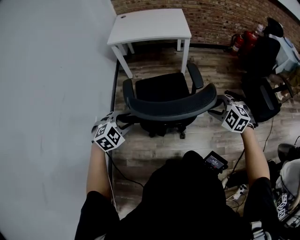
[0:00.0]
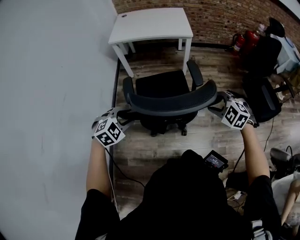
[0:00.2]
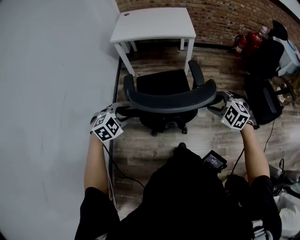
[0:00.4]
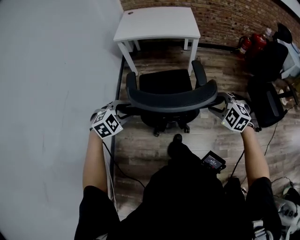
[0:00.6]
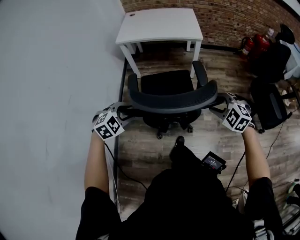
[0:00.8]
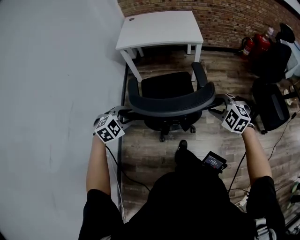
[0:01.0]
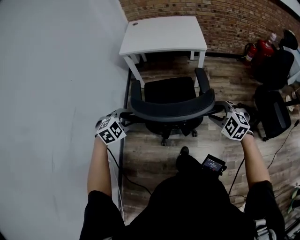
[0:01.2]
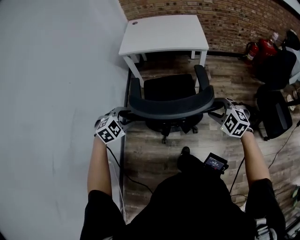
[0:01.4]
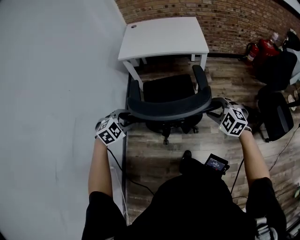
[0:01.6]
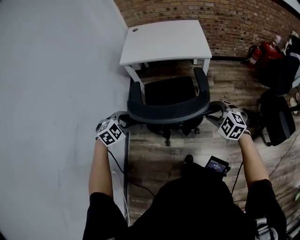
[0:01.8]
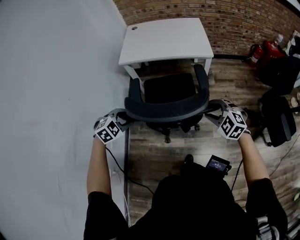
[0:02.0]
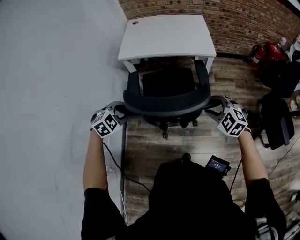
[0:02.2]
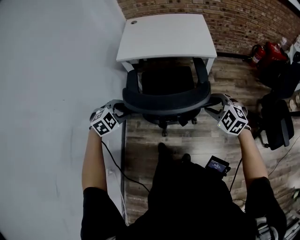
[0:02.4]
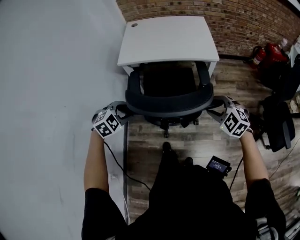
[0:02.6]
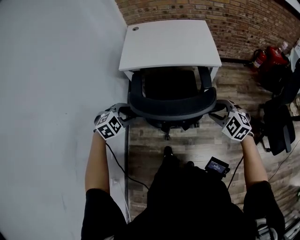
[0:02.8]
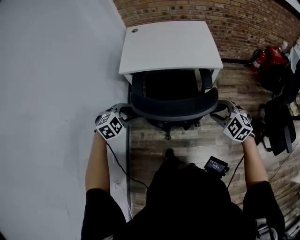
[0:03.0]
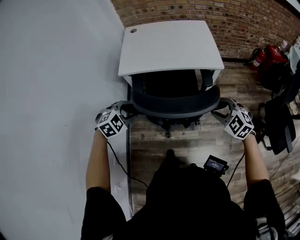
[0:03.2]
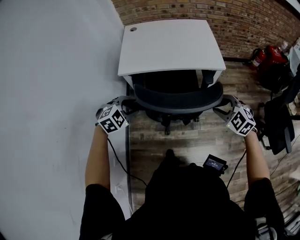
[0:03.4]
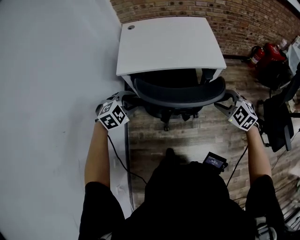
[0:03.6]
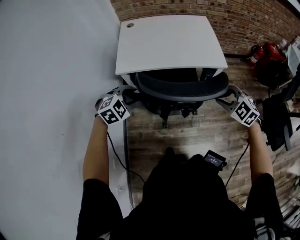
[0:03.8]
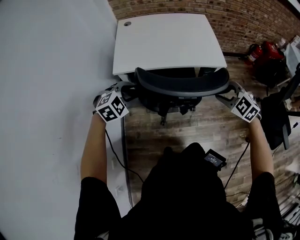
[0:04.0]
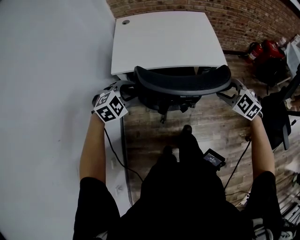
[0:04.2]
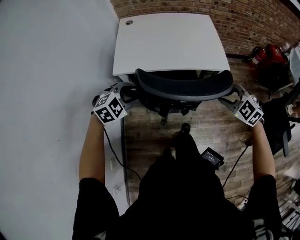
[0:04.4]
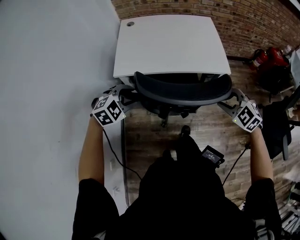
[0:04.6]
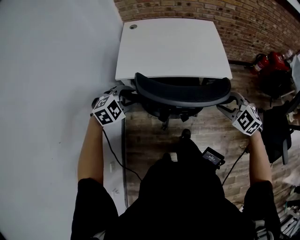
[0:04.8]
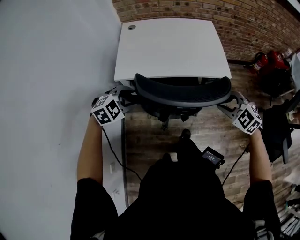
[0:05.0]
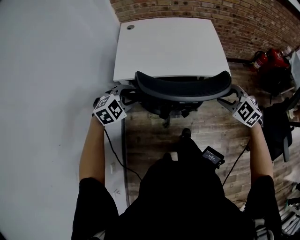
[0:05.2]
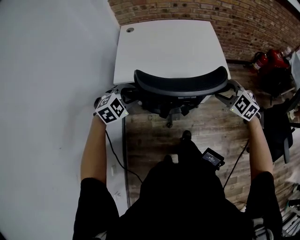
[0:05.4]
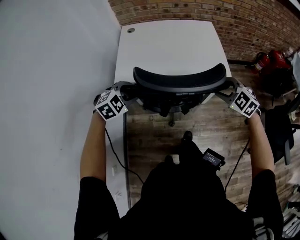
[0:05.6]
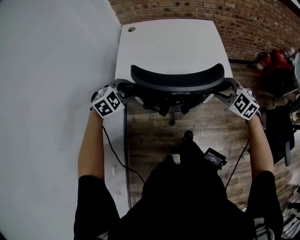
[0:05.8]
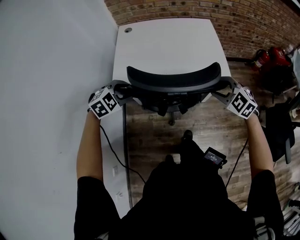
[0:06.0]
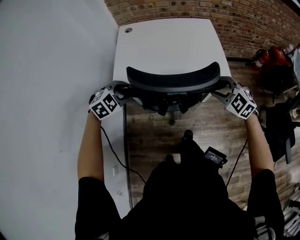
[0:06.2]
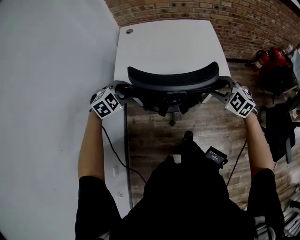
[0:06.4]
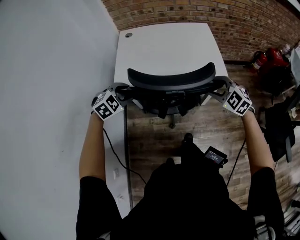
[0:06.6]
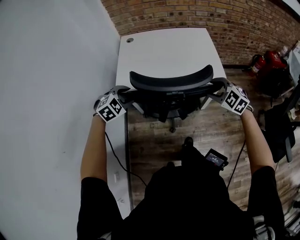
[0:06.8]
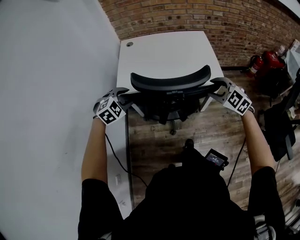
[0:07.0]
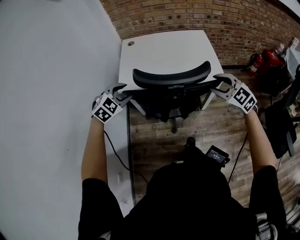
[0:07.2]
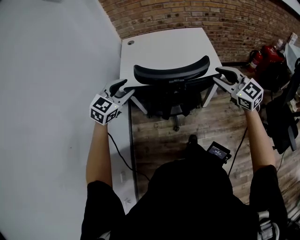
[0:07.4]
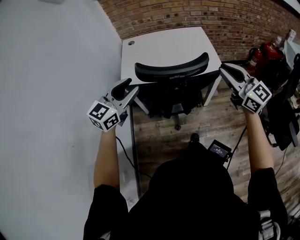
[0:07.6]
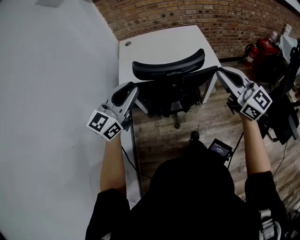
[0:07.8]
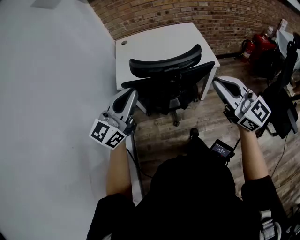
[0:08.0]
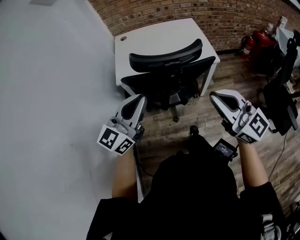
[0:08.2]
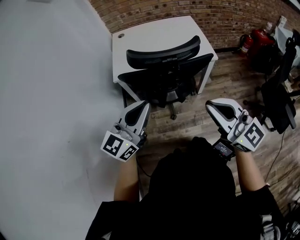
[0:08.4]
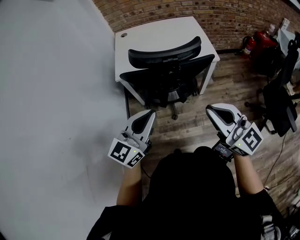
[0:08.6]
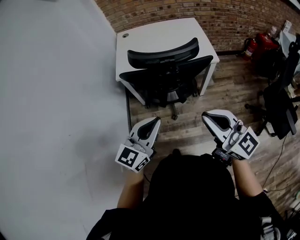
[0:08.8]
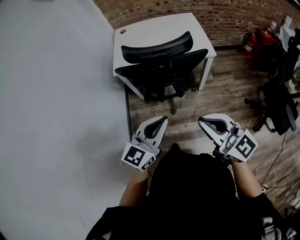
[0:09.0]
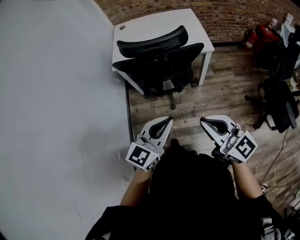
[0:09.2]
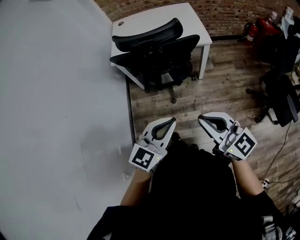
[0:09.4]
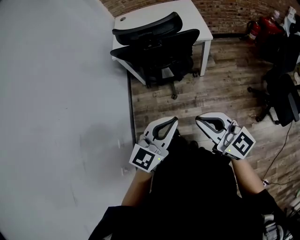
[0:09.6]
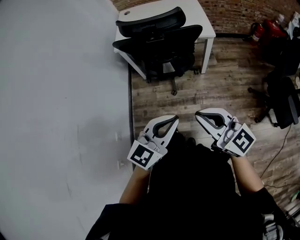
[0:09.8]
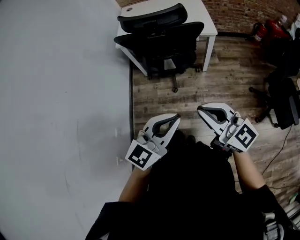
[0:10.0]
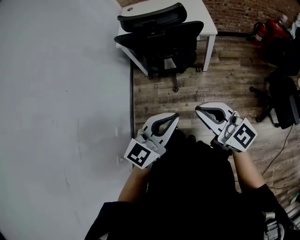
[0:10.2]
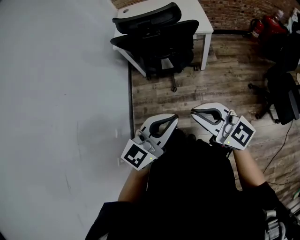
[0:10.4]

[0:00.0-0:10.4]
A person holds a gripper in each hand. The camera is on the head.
0.0 to 1.4 s: Both grippers move forward and to the left, some 20 cm.
1.4 to 3.0 s: The two grippers go approximately 30 cm forward.
3.0 to 4.4 s: Both grippers travel together forward, about 10 cm.
4.4 to 6.0 s: The two grippers go roughly 10 cm forward.
6.0 to 7.4 s: The left gripper heads upward, covering about 15 cm, and angles its fingers upward, by roughly 30 degrees, while the right gripper moves upward and backward, some 15 cm, and swivels some 40 degrees.
7.4 to 9.0 s: The left gripper heads backward and to the right, covering approximately 30 cm, turns by approximately 30 degrees, and closes up; the right gripper is displaced backward by approximately 30 cm, turns by about 20 degrees, and closes.
9.0 to 10.4 s: The right gripper shifts approximately 15 cm backward, while the left gripper moves backward and to the right, approximately 20 cm.

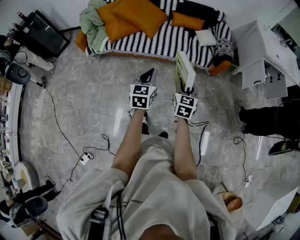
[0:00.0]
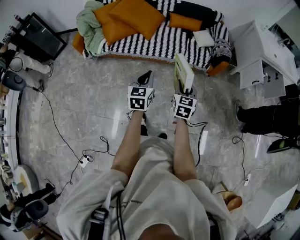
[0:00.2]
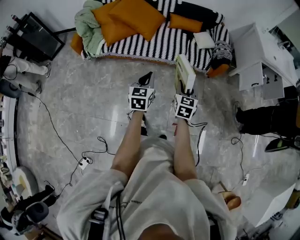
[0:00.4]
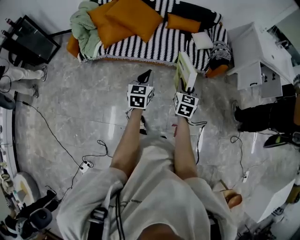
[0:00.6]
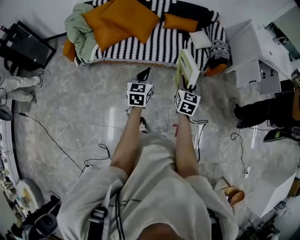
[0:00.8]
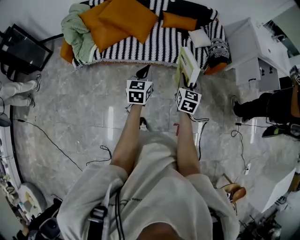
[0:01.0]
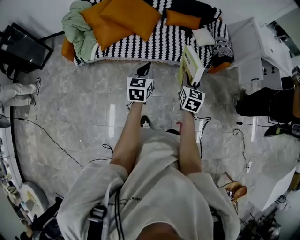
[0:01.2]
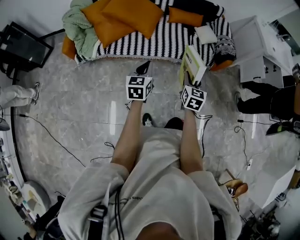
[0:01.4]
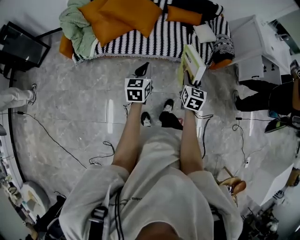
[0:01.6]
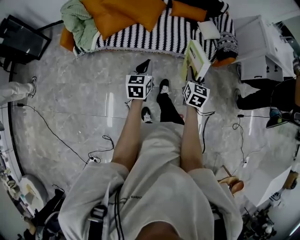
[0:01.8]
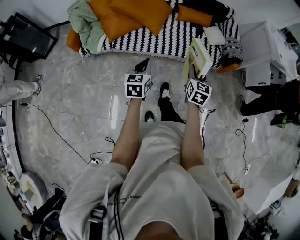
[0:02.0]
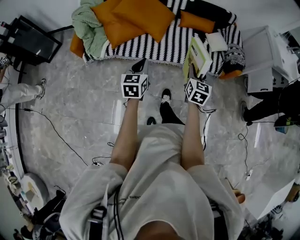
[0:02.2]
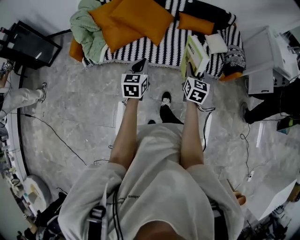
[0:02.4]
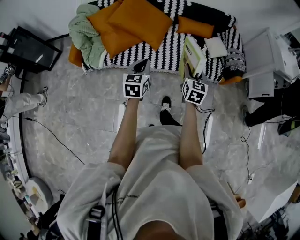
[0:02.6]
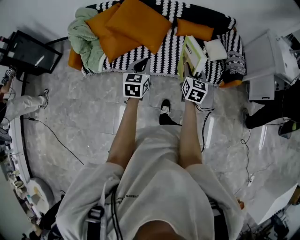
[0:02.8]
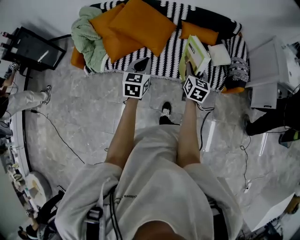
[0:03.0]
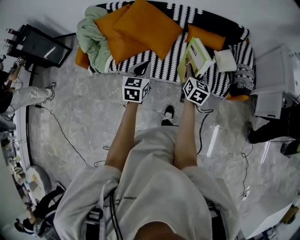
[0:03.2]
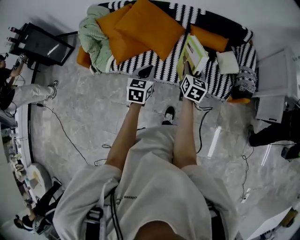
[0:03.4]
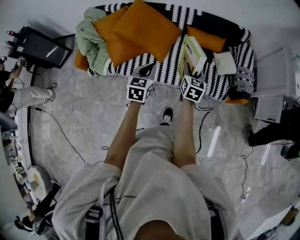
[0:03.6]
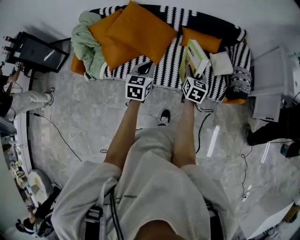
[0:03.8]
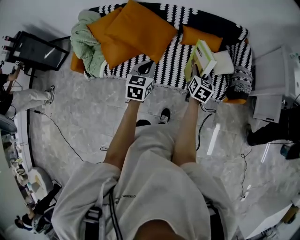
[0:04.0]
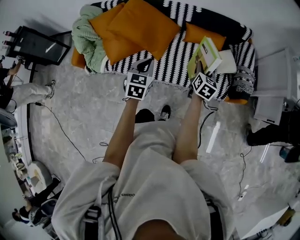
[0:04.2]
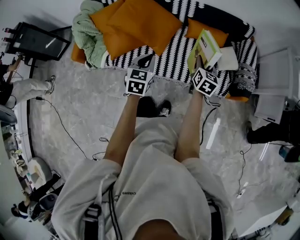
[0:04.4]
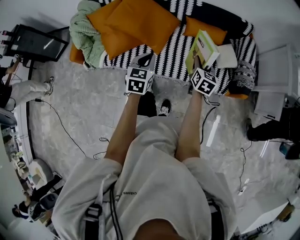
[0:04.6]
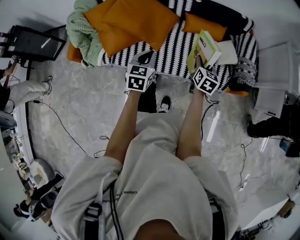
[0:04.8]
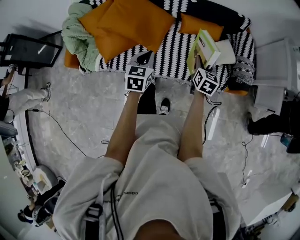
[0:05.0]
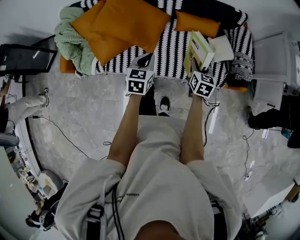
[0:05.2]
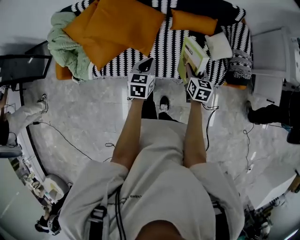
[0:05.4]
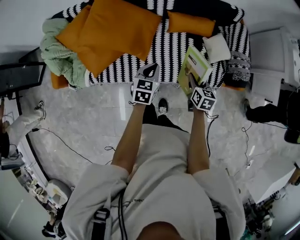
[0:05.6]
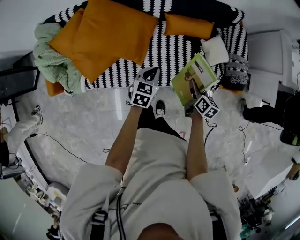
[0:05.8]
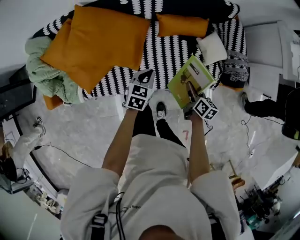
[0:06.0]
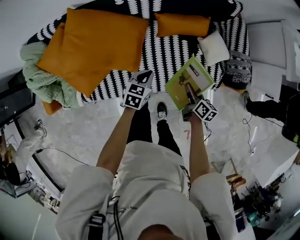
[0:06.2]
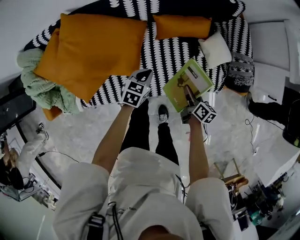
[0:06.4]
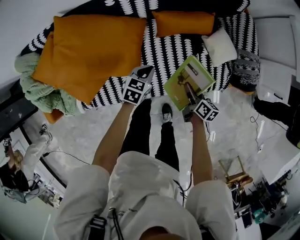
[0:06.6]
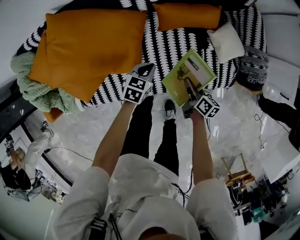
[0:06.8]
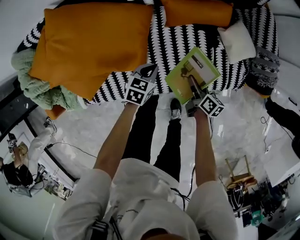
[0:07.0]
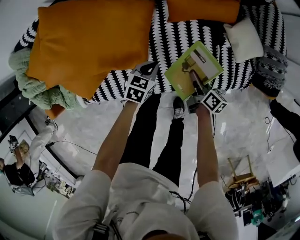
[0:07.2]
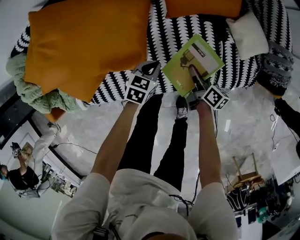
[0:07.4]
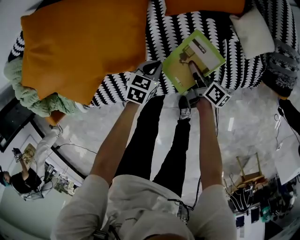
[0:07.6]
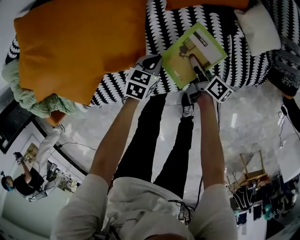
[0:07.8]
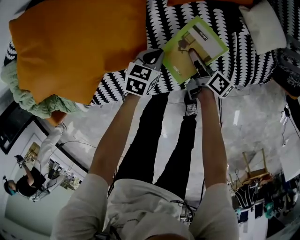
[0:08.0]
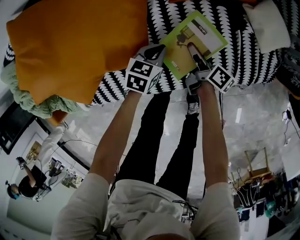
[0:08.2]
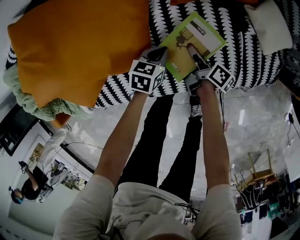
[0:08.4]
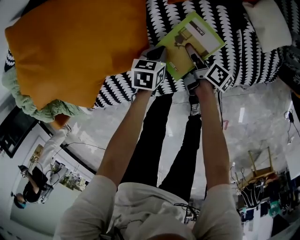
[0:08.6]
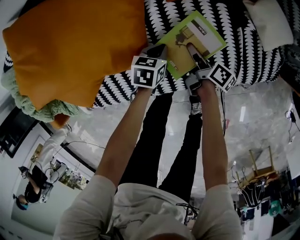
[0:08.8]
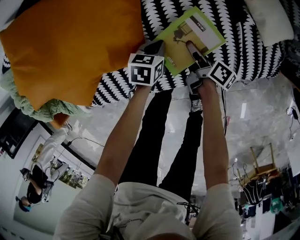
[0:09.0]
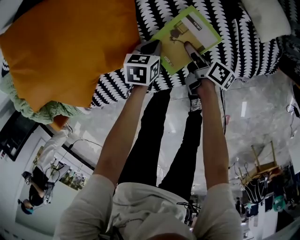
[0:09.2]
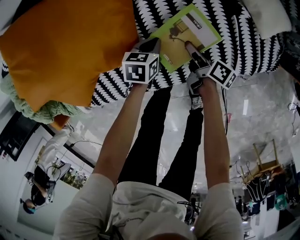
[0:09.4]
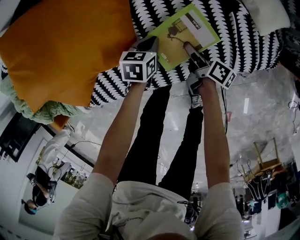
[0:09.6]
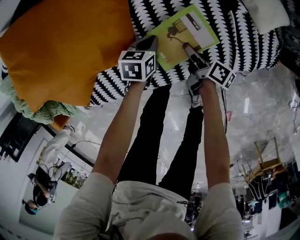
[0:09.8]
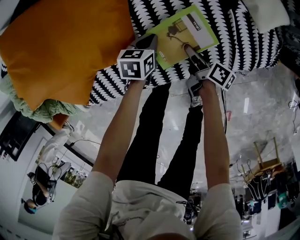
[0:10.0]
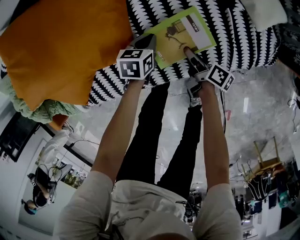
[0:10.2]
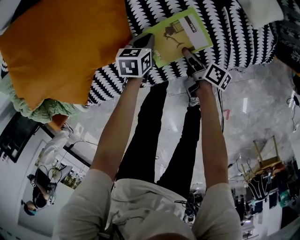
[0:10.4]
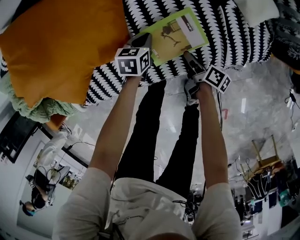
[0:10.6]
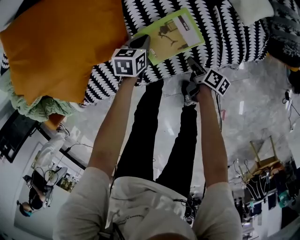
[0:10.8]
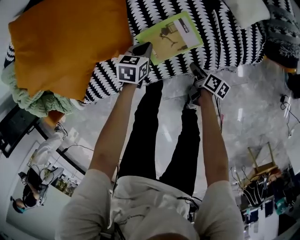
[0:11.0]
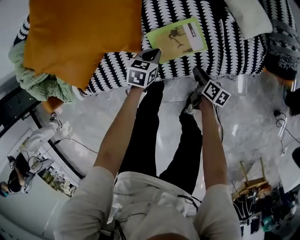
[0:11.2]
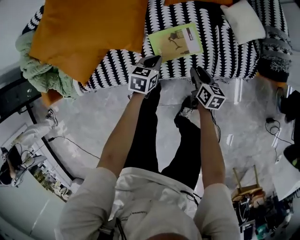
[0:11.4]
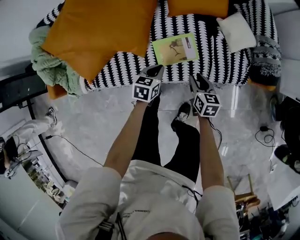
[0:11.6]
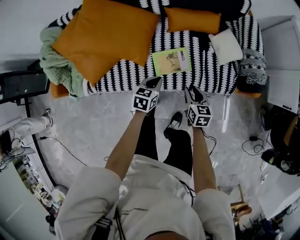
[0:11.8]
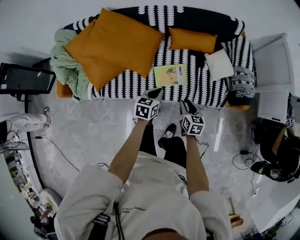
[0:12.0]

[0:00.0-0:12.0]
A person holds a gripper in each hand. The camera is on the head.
0.0 to 1.6 s: The left gripper moves to the left and forward, about 20 cm. The right gripper travels forward and to the left by roughly 15 cm.
1.6 to 3.0 s: The grippers both shift forward by some 20 cm.
3.0 to 4.4 s: The right gripper is displaced forward and to the right by some 15 cm. The left gripper is displaced forward by about 10 cm.
4.4 to 6.0 s: The right gripper shifts about 15 cm downward, and rotates approximately 30 degrees. The left gripper goes approximately 25 cm forward and downward, and changes its angle by some 30 degrees.
6.0 to 7.6 s: Both grippers travel together downward, some 30 cm. The right gripper turns by roughly 30 degrees.
7.6 to 9.0 s: Both grippers travel together downward, approximately 5 cm.
9.0 to 10.4 s: The right gripper shifts about 5 cm backward.
10.4 to 12.0 s: The two grippers go some 35 cm upward and backward. The right gripper rolls counterclockwise, seen from behind, by about 70 degrees; the left gripper rotates about 20 degrees.

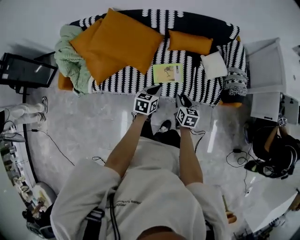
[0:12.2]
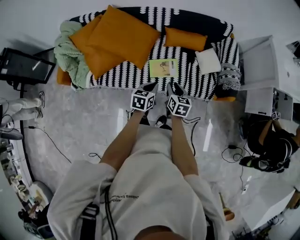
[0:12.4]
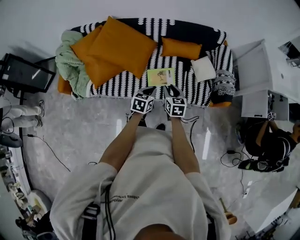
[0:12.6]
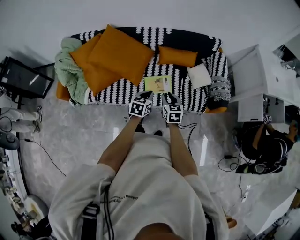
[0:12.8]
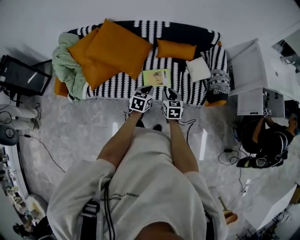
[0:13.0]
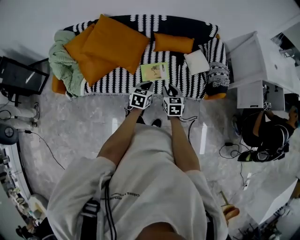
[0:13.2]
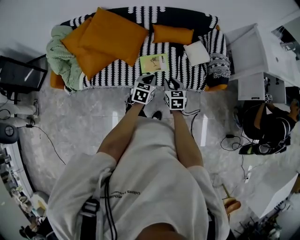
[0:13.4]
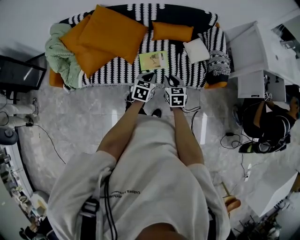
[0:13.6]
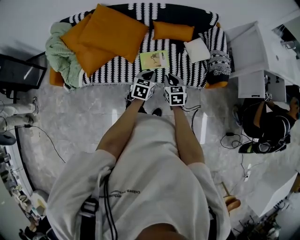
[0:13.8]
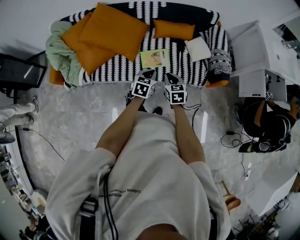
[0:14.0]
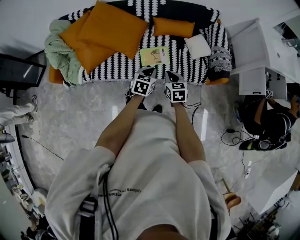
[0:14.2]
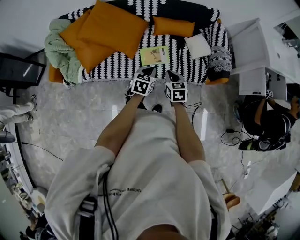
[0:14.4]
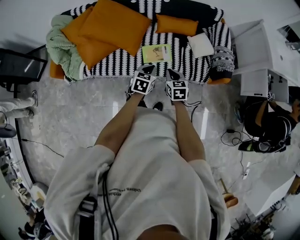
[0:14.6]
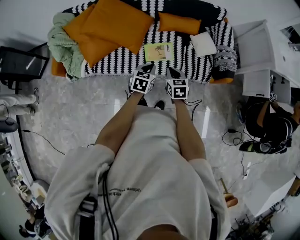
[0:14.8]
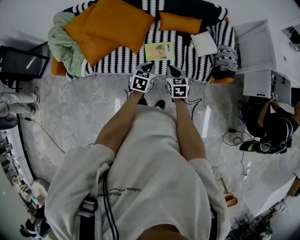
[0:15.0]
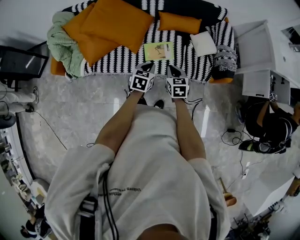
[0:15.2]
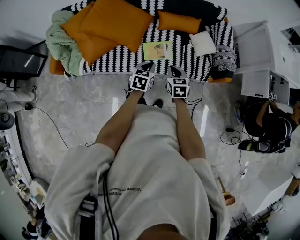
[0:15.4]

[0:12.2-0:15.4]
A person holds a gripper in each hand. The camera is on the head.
12.2 to 13.8 s: The left gripper moves some 5 cm. The right gripper goes approximately 5 cm upward.
13.8 to 15.4 s: The grippers move only a little.
